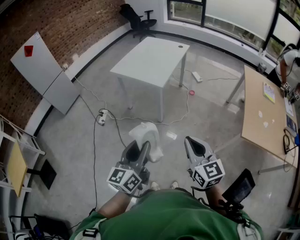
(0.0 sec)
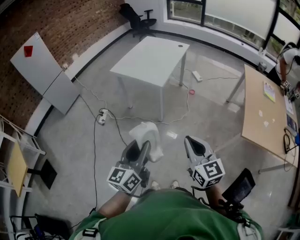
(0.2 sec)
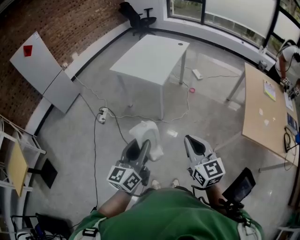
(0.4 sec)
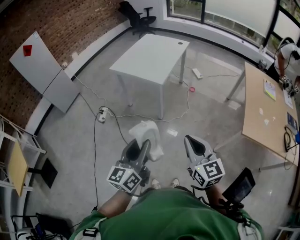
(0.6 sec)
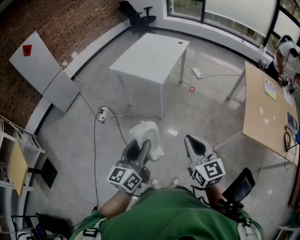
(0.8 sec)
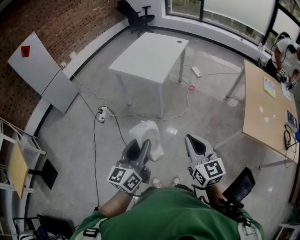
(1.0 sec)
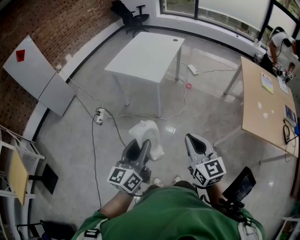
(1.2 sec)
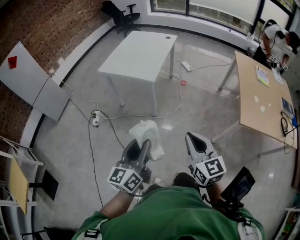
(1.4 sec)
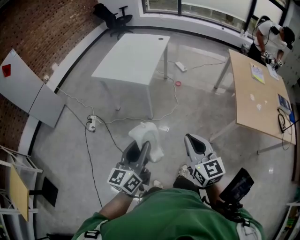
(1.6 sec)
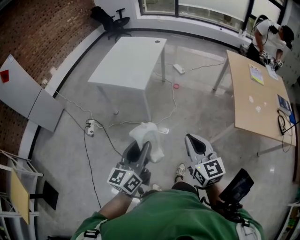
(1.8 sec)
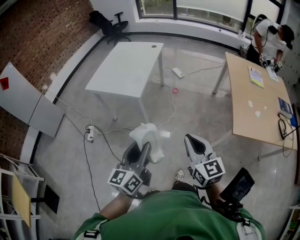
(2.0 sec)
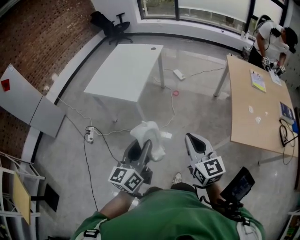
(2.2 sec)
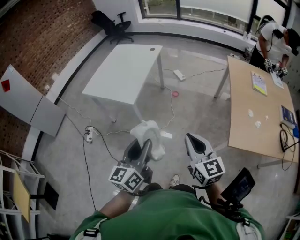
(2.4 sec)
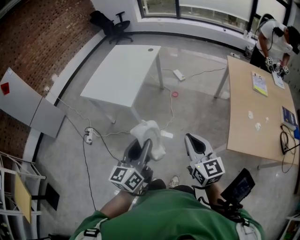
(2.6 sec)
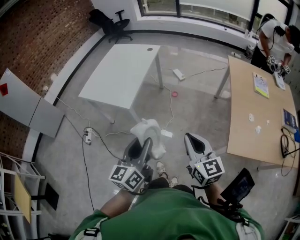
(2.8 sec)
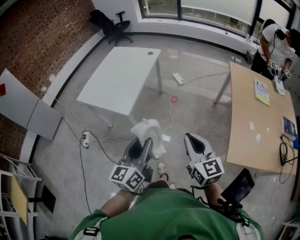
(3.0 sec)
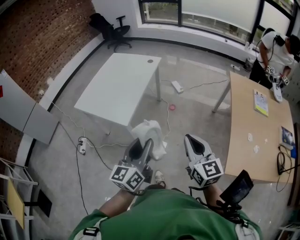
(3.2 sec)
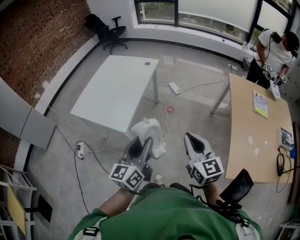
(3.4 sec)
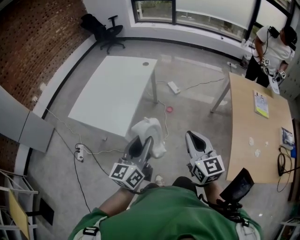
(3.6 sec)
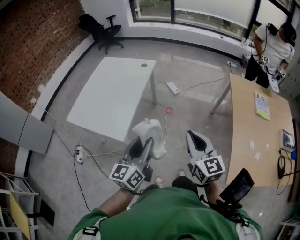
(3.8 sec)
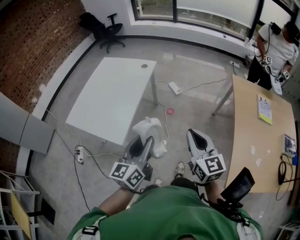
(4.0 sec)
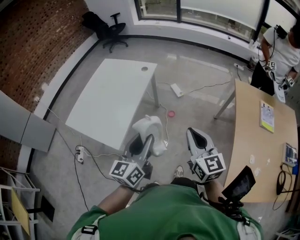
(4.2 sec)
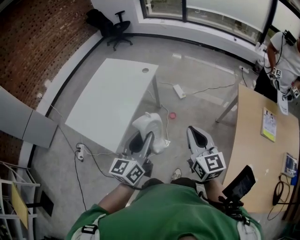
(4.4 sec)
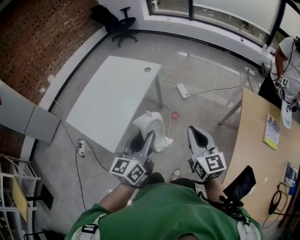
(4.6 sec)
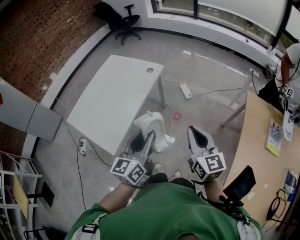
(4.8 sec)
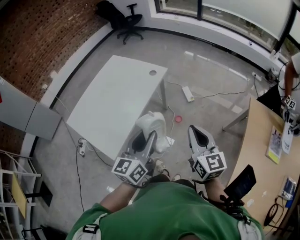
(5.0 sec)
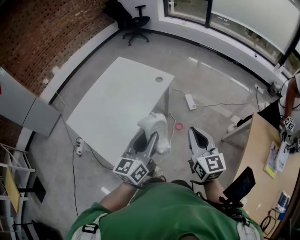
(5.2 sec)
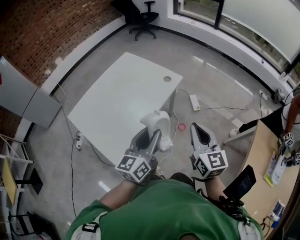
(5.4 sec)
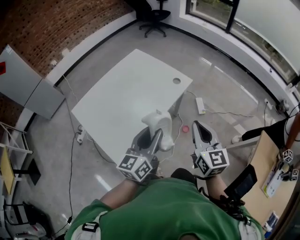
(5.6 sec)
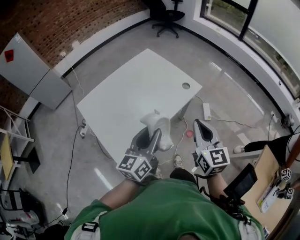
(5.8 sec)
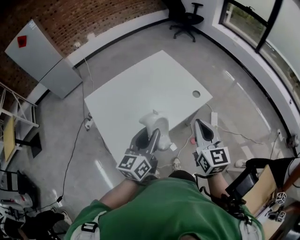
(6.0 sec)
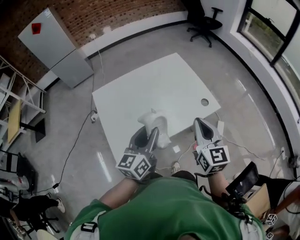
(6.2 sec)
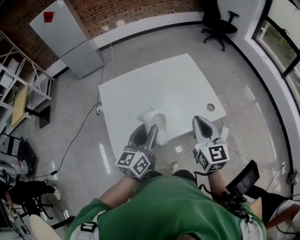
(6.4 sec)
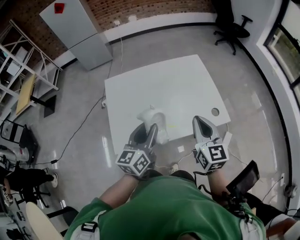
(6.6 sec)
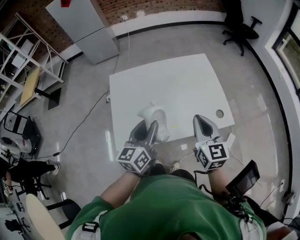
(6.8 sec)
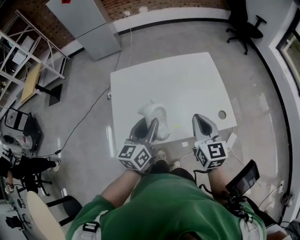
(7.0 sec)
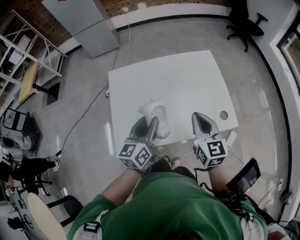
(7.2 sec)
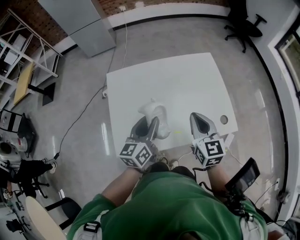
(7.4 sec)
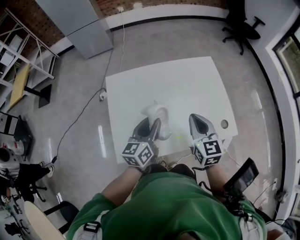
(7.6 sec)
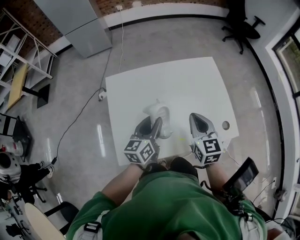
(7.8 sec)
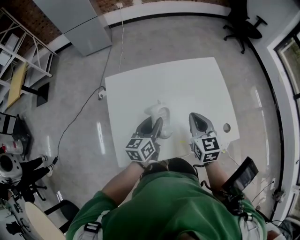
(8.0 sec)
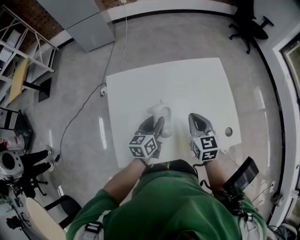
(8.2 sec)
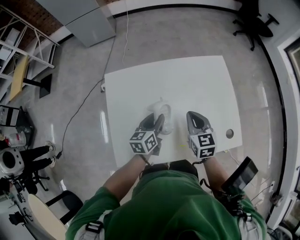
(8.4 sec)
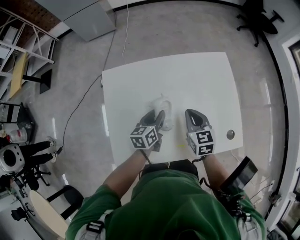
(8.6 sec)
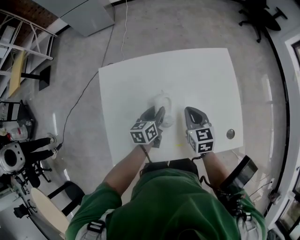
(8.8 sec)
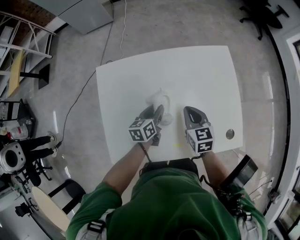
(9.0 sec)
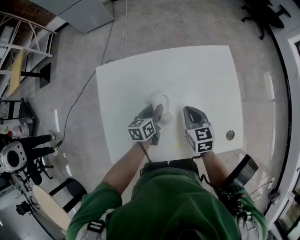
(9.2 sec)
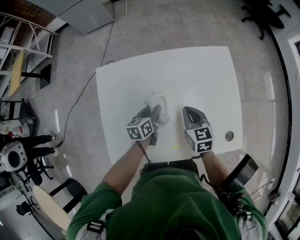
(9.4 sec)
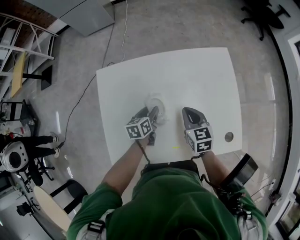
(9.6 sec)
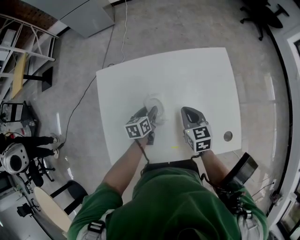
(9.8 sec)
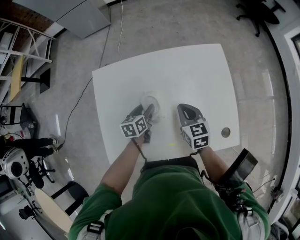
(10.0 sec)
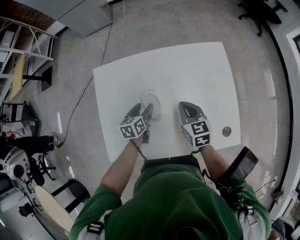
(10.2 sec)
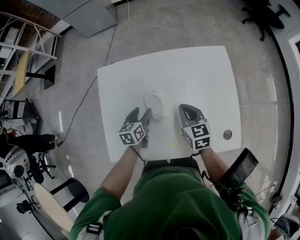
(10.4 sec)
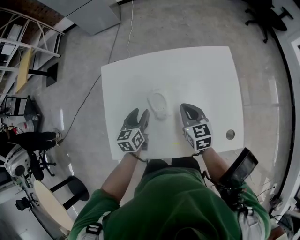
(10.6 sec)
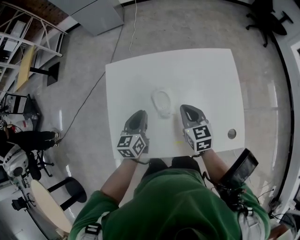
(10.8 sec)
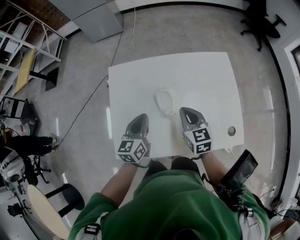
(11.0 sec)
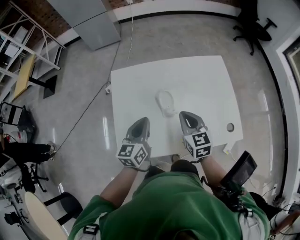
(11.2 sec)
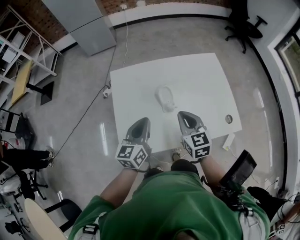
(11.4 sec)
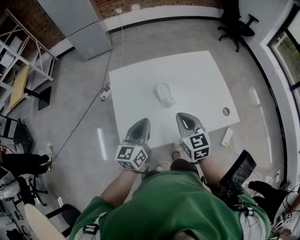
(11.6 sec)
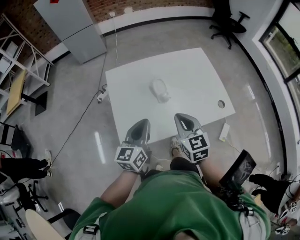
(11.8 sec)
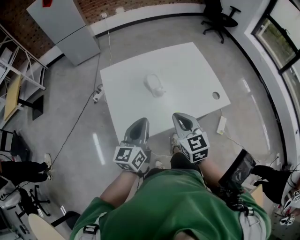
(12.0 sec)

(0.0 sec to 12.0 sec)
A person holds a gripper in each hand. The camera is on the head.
0.0 sec - 1.6 sec: The grippers make only small movements.
1.6 sec - 3.0 sec: The grippers both shift forward and to the right by approximately 30 cm.
3.0 sec - 4.4 sec: Both grippers travel together forward, some 30 cm.
4.4 sec - 6.0 sec: The right gripper changes place by approximately 35 cm, and swivels approximately 30 degrees; the left gripper moves some 25 cm, and swivels some 30 degrees.
6.0 sec - 7.6 sec: The left gripper moves about 20 cm, and changes its angle by approximately 30 degrees; the right gripper moves some 25 cm, and changes its angle by some 30 degrees.
7.6 sec - 9.0 sec: Both grippers travel together downward and forward, approximately 20 cm. The left gripper turns by about 20 degrees.
9.0 sec - 10.4 sec: The left gripper is displaced to the left by some 5 cm, and opens its fingers.
10.4 sec - 12.0 sec: The right gripper moves backward, upward and to the left, about 30 cm, and swivels approximately 20 degrees. Meanwhile the left gripper moves backward and upward, roughly 30 cm, points its fingers approximately 30 degrees further upward, and closes up.

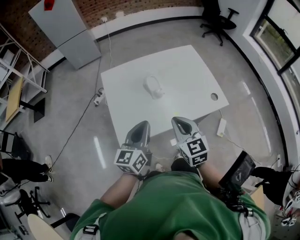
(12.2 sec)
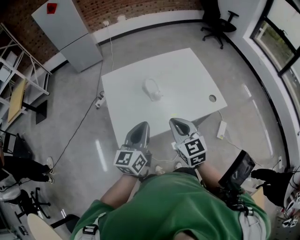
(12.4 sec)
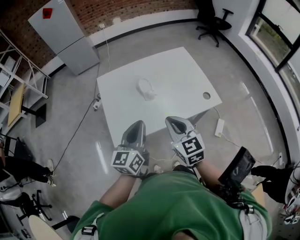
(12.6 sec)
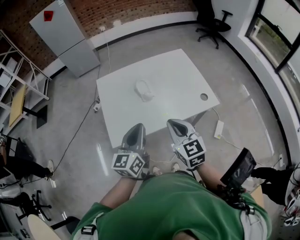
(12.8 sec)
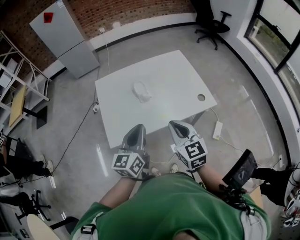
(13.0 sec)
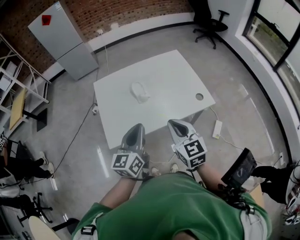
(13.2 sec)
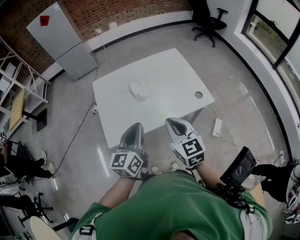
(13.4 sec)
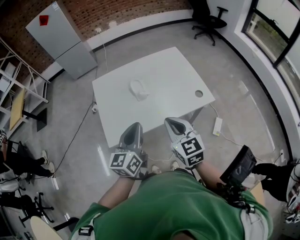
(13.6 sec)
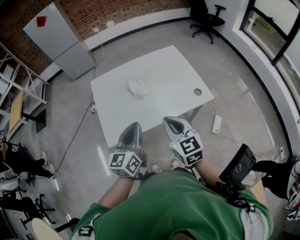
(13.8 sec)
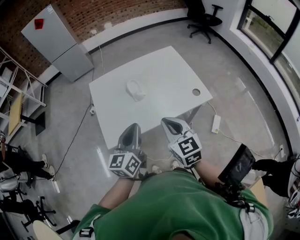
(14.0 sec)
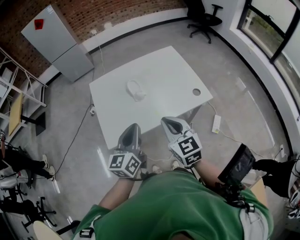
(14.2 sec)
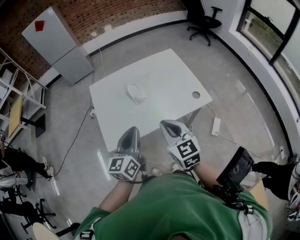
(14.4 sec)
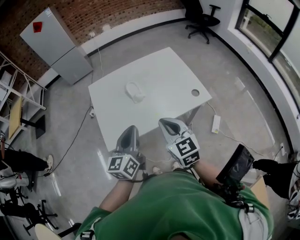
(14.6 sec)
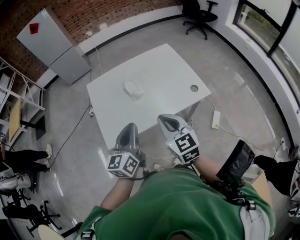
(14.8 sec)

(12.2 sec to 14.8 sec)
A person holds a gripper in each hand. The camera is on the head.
12.2 sec - 13.4 sec: The grippers both shift to the right by approximately 5 cm.
13.4 sec - 14.8 sec: Neither gripper changes place.

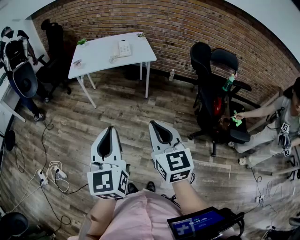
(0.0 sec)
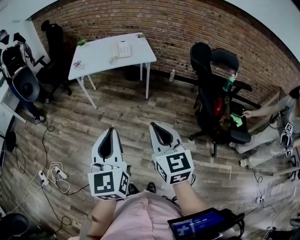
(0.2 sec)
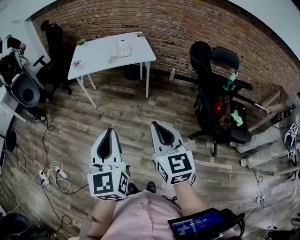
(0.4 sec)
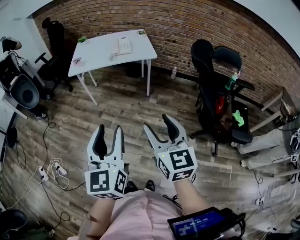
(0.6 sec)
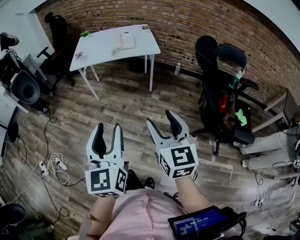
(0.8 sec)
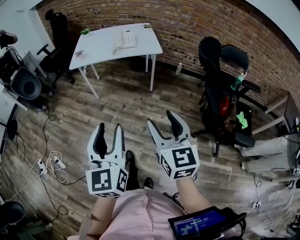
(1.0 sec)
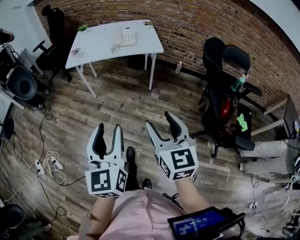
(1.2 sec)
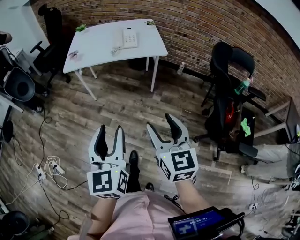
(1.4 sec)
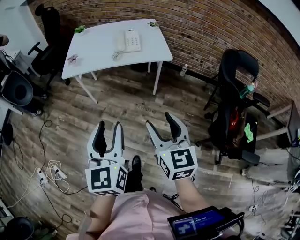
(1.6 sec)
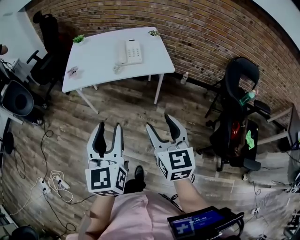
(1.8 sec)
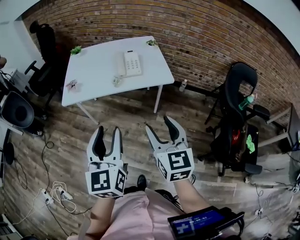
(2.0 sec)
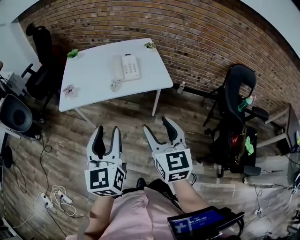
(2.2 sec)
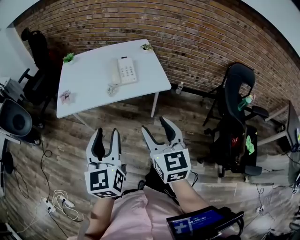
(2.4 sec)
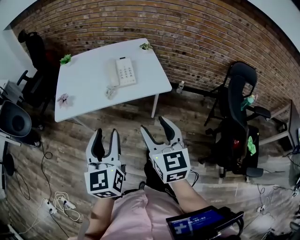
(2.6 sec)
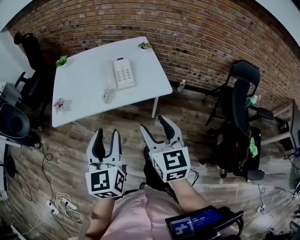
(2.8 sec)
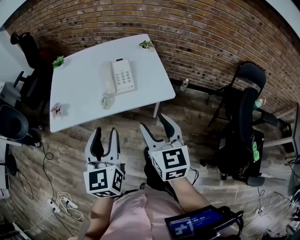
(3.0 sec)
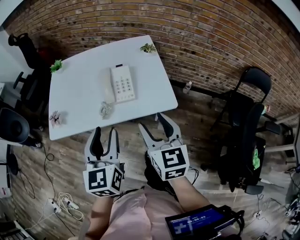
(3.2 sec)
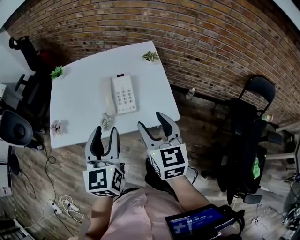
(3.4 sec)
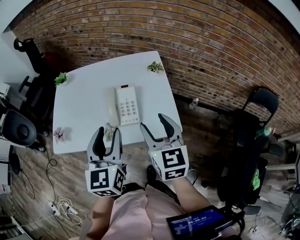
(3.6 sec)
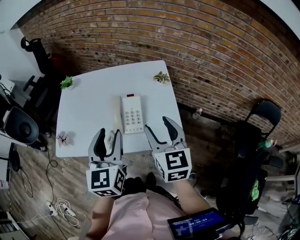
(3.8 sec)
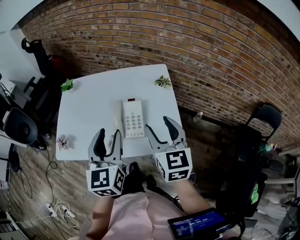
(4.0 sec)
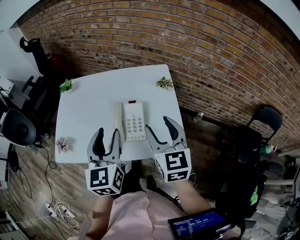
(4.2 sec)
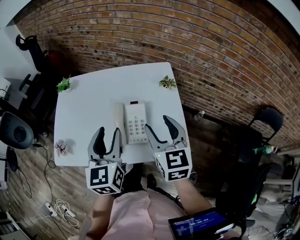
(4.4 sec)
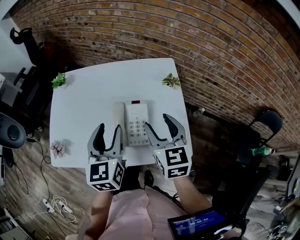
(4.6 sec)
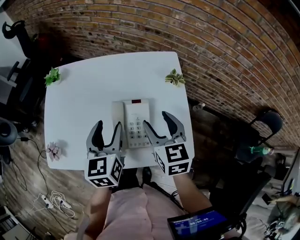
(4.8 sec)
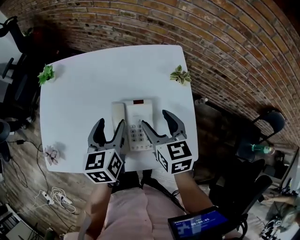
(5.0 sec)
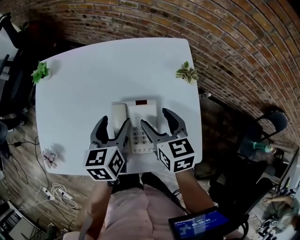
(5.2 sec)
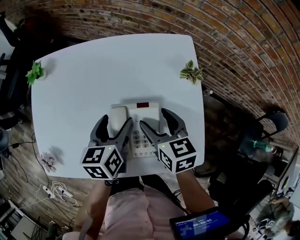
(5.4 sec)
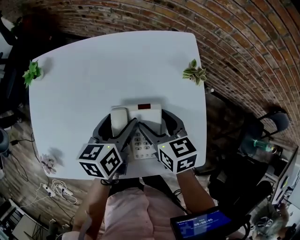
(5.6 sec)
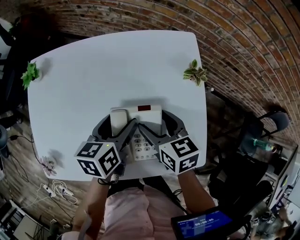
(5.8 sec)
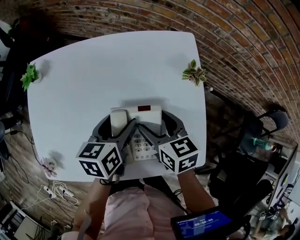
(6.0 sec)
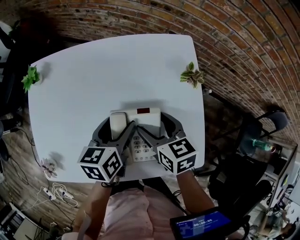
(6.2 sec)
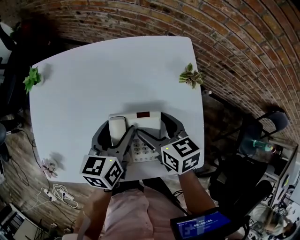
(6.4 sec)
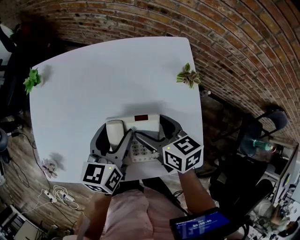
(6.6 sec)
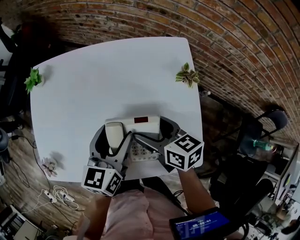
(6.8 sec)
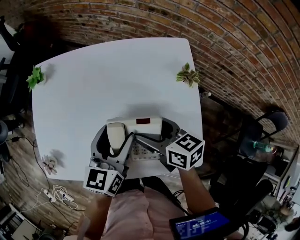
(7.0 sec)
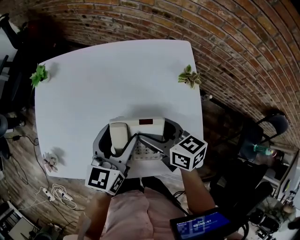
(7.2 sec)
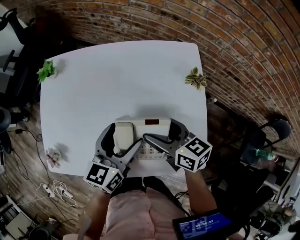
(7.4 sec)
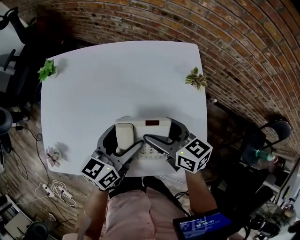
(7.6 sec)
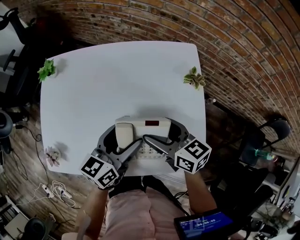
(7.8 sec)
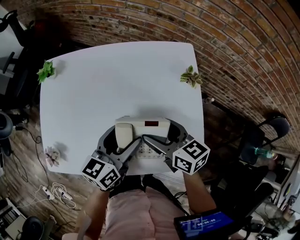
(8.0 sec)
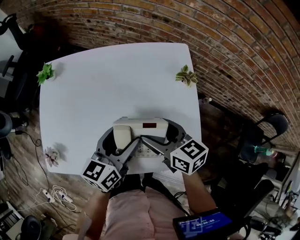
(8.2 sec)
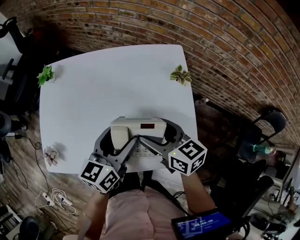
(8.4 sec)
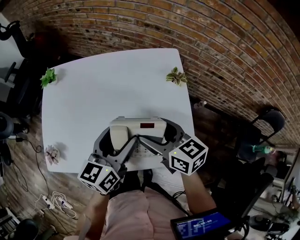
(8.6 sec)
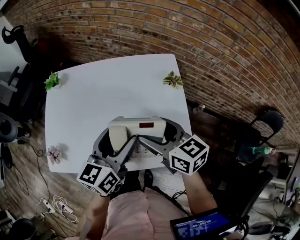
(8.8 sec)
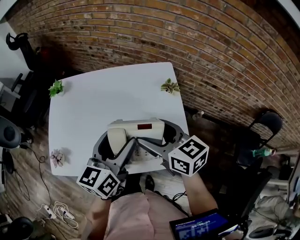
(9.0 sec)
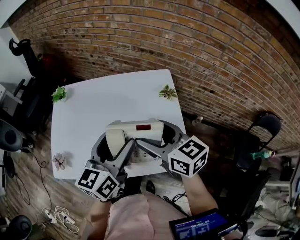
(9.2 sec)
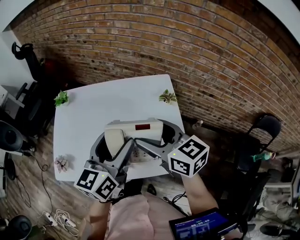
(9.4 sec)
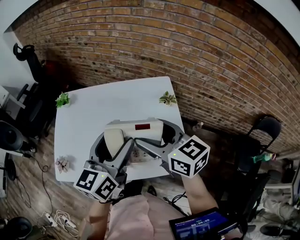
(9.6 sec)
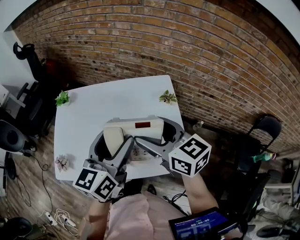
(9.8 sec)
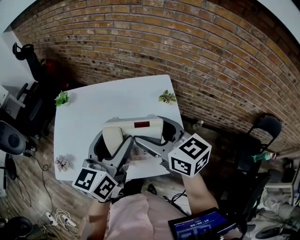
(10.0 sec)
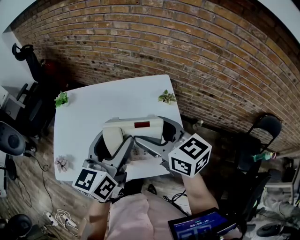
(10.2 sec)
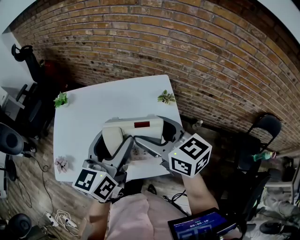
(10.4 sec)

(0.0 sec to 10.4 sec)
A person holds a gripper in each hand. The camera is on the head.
0.0 sec - 1.4 sec: The two grippers go about 15 cm forward and downward. The left gripper opens its fingers; the right gripper opens up.
1.4 sec - 3.0 sec: The two grippers go roughly 40 cm forward.
3.0 sec - 4.4 sec: The two grippers go roughly 25 cm forward.
4.4 sec - 6.0 sec: The two grippers go approximately 25 cm downward and forward. The right gripper rotates about 30 degrees. The left gripper changes its angle by some 40 degrees.
6.0 sec - 7.4 sec: The left gripper travels upward and backward by roughly 10 cm, and swivels about 20 degrees, while the right gripper swivels roughly 20 degrees.
7.4 sec - 9.0 sec: The two grippers go roughly 15 cm upward.
9.0 sec - 10.4 sec: Both grippers travel together upward, about 10 cm.
